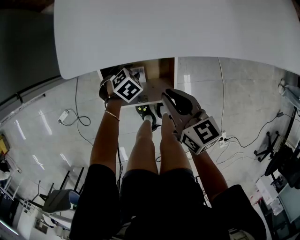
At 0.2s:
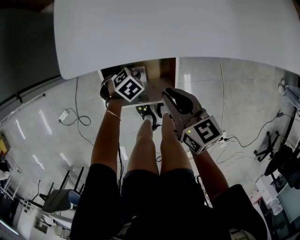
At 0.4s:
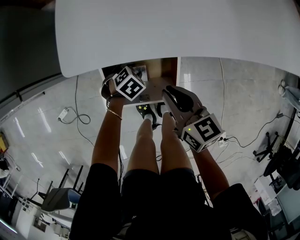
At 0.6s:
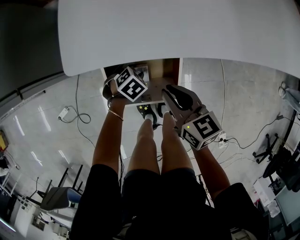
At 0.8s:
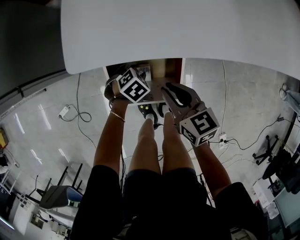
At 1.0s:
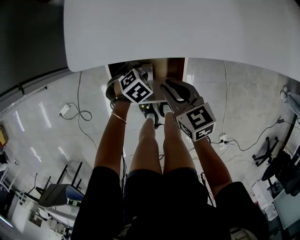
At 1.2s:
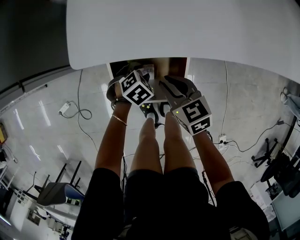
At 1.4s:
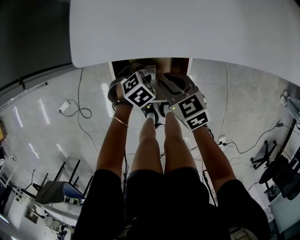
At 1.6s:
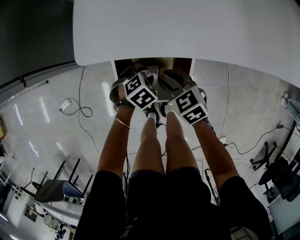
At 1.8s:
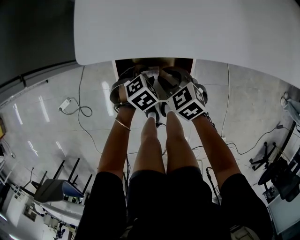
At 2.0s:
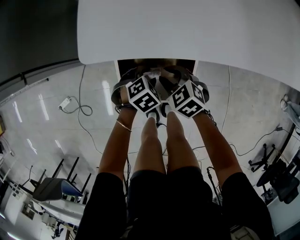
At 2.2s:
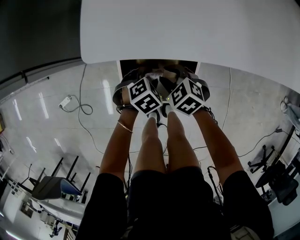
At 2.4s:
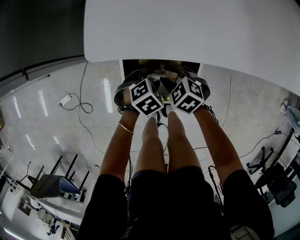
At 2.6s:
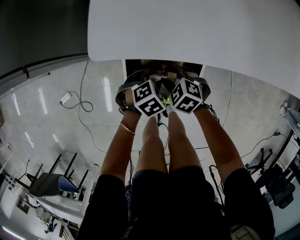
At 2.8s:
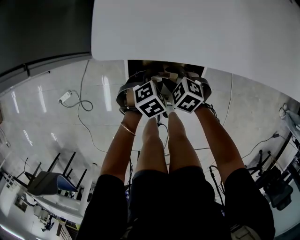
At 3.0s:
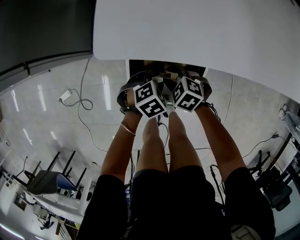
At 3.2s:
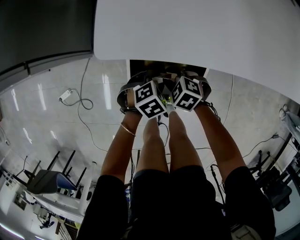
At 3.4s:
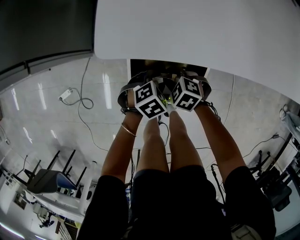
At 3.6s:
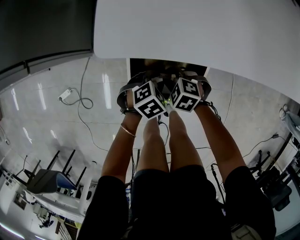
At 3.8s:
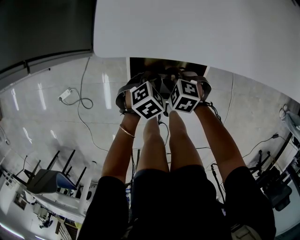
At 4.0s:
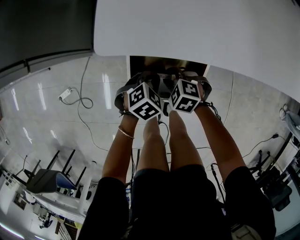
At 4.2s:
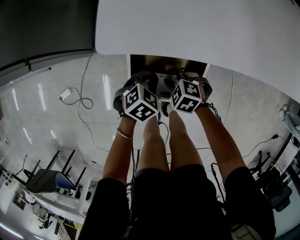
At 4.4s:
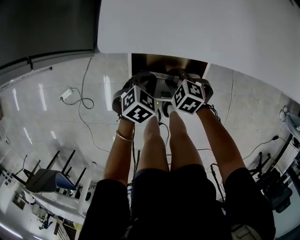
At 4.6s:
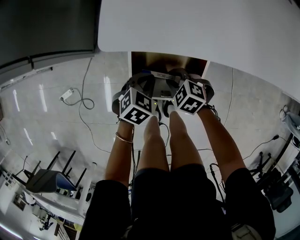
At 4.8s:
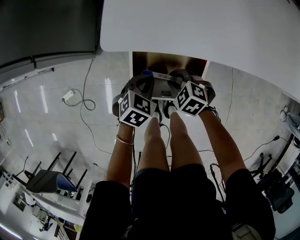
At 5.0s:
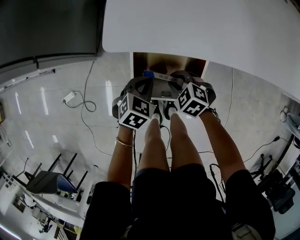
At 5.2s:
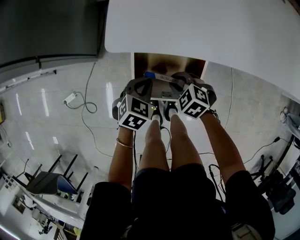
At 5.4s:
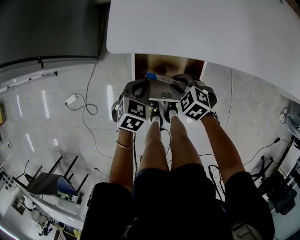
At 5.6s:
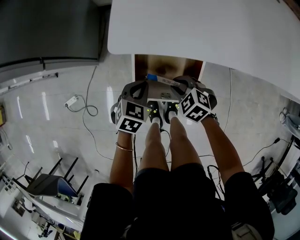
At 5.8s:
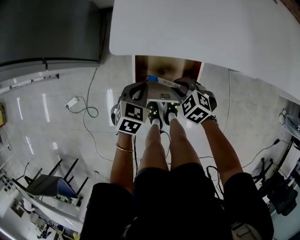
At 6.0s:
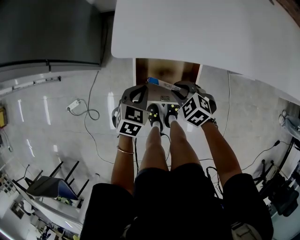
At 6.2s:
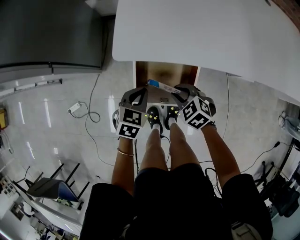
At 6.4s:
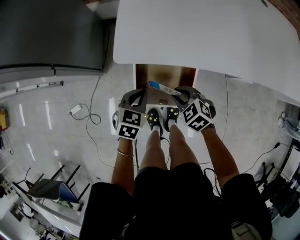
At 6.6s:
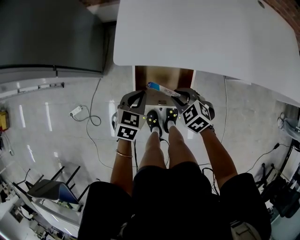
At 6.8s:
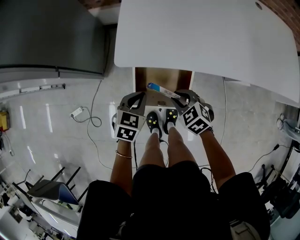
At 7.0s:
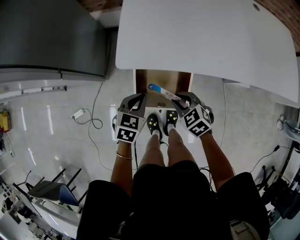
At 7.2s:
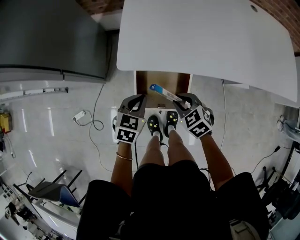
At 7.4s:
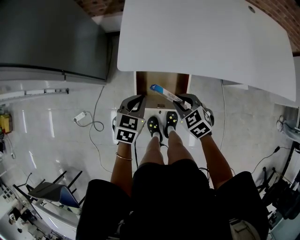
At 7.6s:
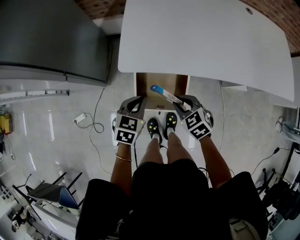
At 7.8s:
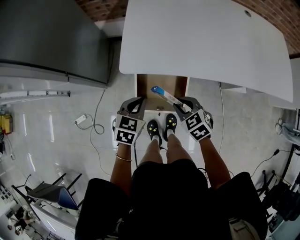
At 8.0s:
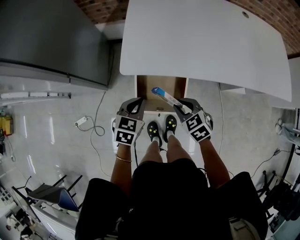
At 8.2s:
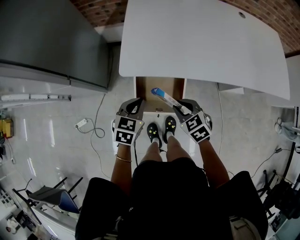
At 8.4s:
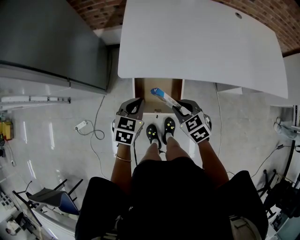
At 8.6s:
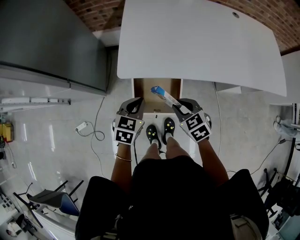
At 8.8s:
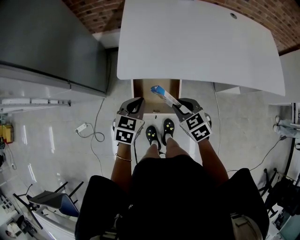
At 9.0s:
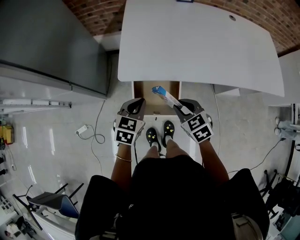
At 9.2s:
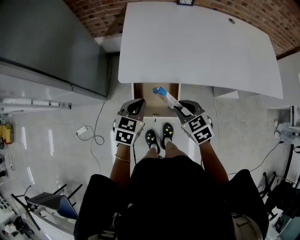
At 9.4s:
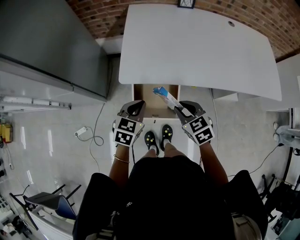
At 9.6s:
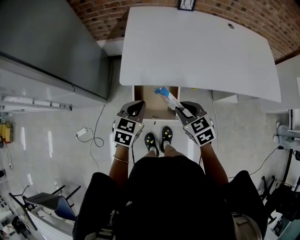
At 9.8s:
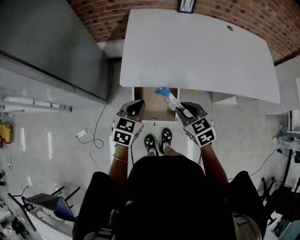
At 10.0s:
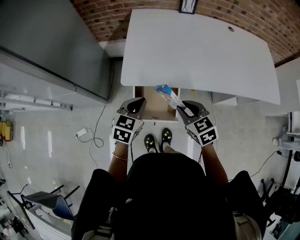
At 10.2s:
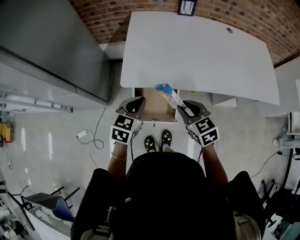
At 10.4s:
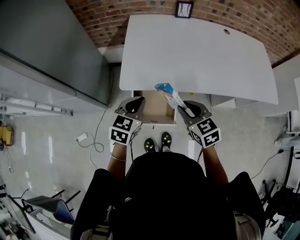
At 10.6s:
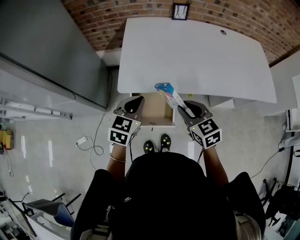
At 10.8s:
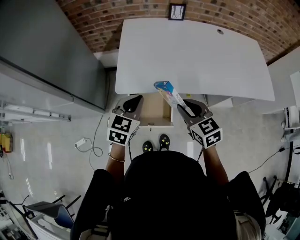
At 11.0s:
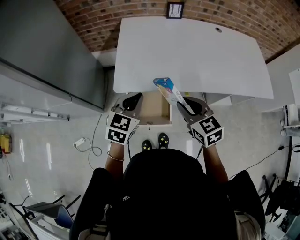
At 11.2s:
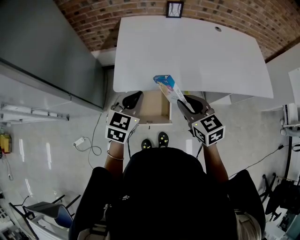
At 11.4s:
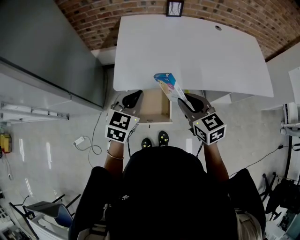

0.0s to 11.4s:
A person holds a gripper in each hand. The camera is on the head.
0.0s to 1.4s: The right gripper is displaced downward and to the left by some 10 cm, and turns by approximately 30 degrees.
1.4s to 2.8s: The right gripper heads downward, covering approximately 10 cm, and rotates about 40 degrees.
2.8s to 4.2s: The left gripper closes up.
4.2s to 5.6s: The two grippers go about 5 cm upward.
5.6s to 7.2s: The grippers both shift upward by roughly 10 cm.
7.2s to 8.6s: The grippers both shift upward by about 10 cm.
8.6s to 10.0s: Both grippers travel together upward, some 10 cm.
10.0s to 11.4s: The two grippers go roughly 10 cm upward.

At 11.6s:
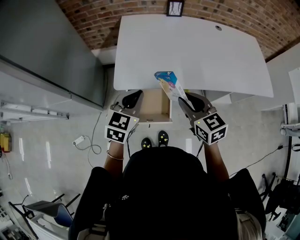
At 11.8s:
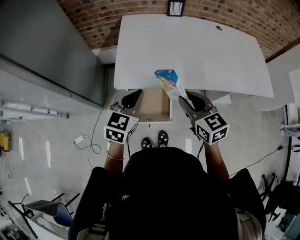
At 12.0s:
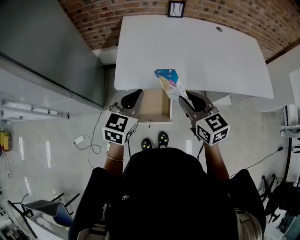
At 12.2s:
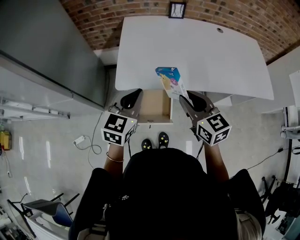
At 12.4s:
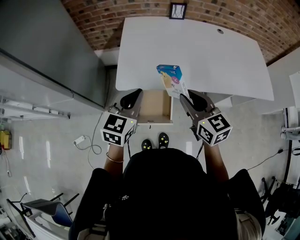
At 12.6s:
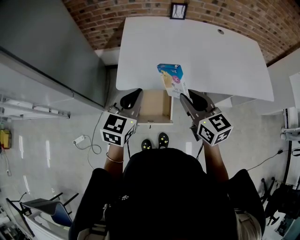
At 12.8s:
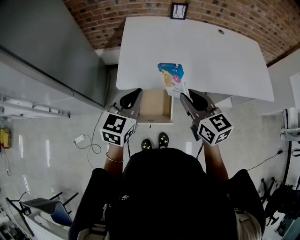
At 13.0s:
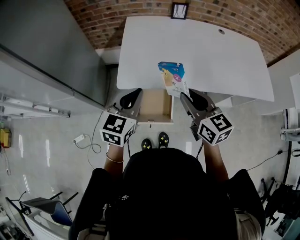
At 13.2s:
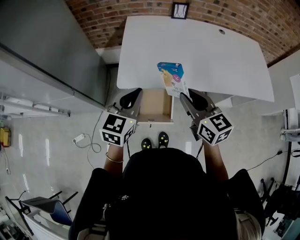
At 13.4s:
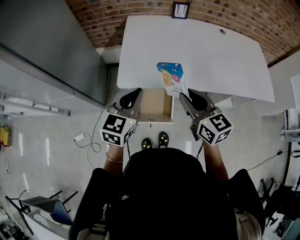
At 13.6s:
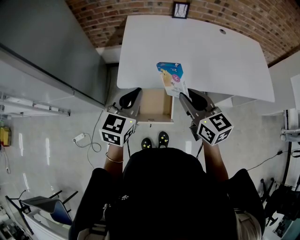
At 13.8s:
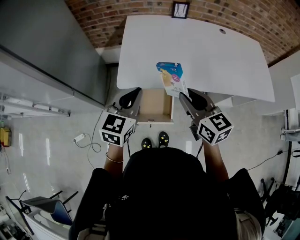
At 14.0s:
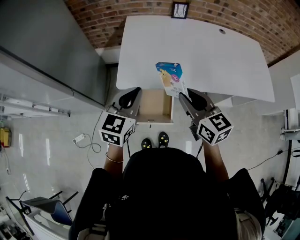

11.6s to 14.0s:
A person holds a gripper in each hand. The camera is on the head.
11.6s to 12.8s: The grippers stay close to where they were, moving slightly.
12.8s to 14.0s: Neither gripper changes place.

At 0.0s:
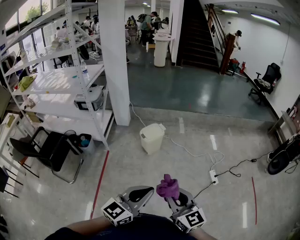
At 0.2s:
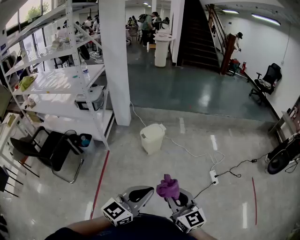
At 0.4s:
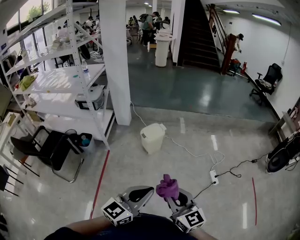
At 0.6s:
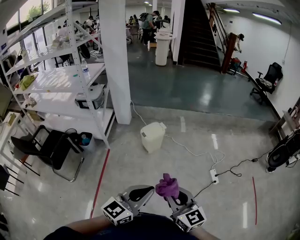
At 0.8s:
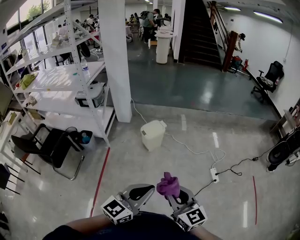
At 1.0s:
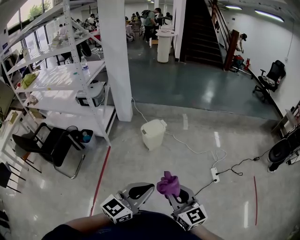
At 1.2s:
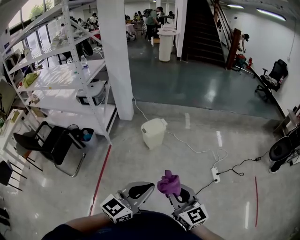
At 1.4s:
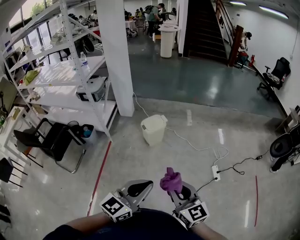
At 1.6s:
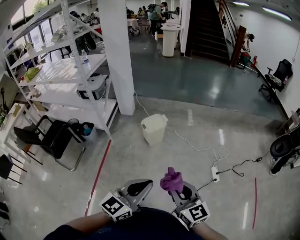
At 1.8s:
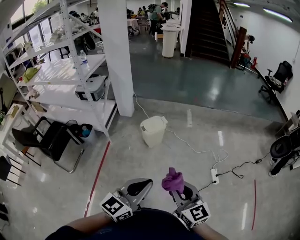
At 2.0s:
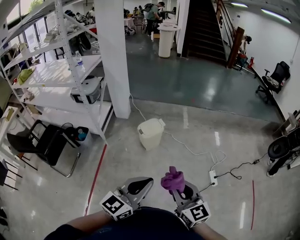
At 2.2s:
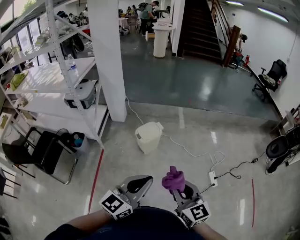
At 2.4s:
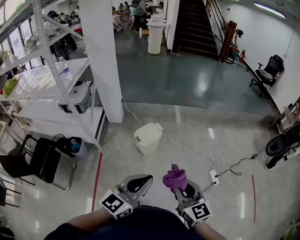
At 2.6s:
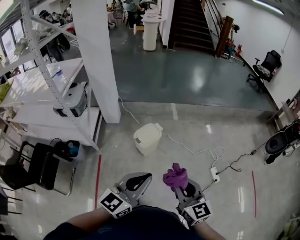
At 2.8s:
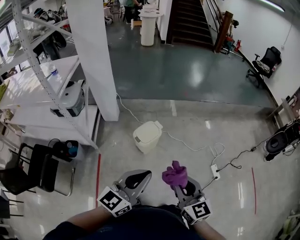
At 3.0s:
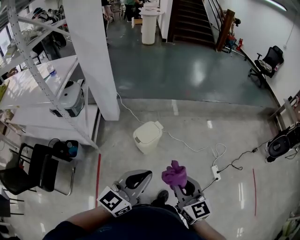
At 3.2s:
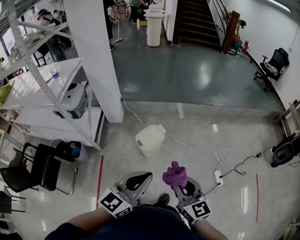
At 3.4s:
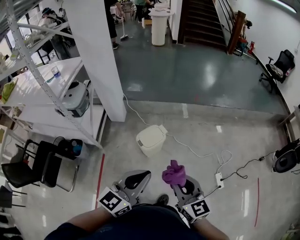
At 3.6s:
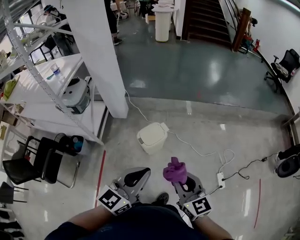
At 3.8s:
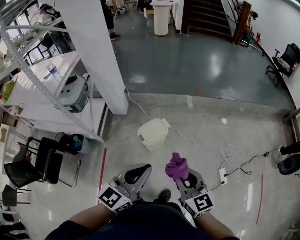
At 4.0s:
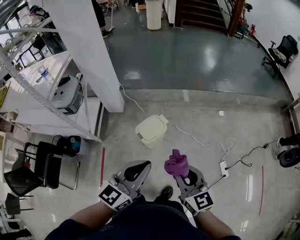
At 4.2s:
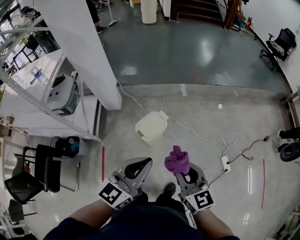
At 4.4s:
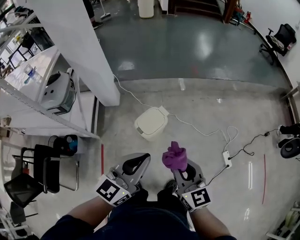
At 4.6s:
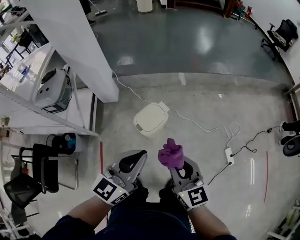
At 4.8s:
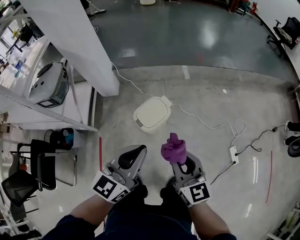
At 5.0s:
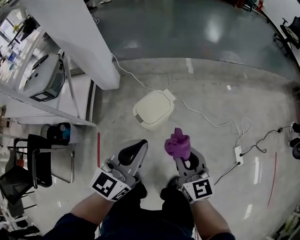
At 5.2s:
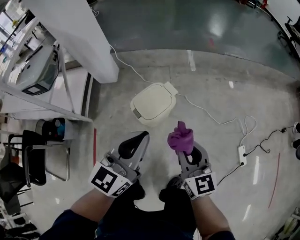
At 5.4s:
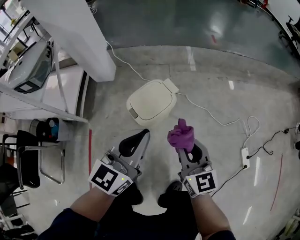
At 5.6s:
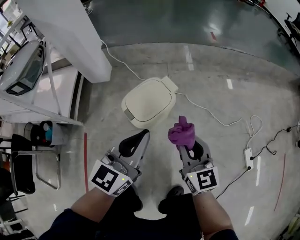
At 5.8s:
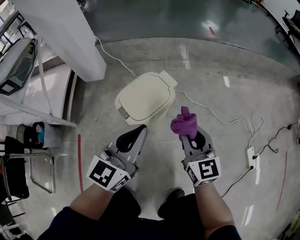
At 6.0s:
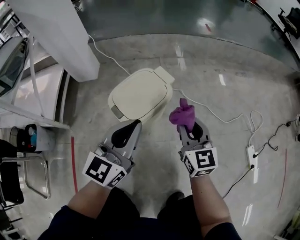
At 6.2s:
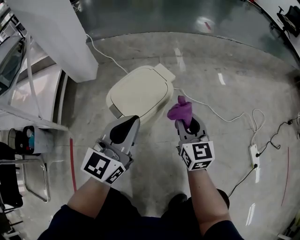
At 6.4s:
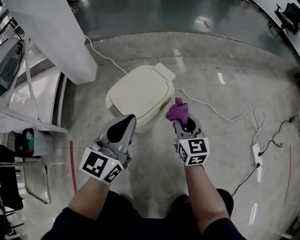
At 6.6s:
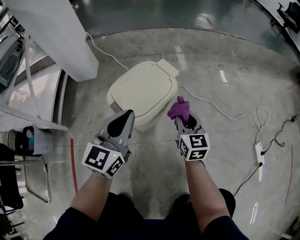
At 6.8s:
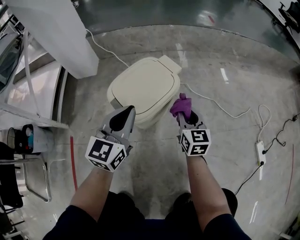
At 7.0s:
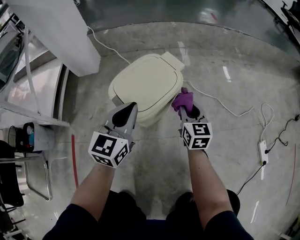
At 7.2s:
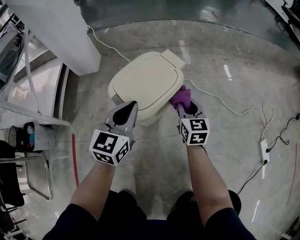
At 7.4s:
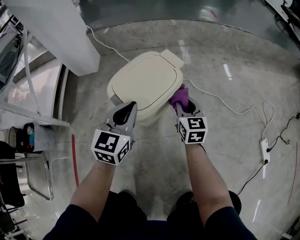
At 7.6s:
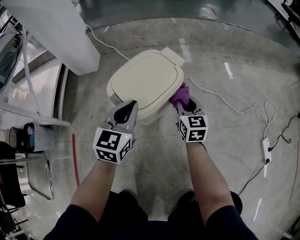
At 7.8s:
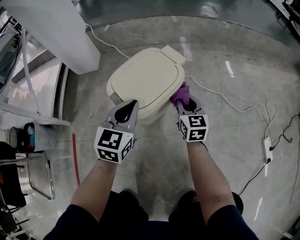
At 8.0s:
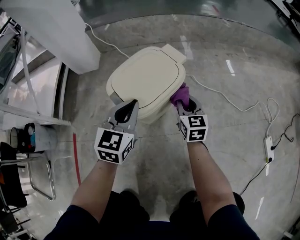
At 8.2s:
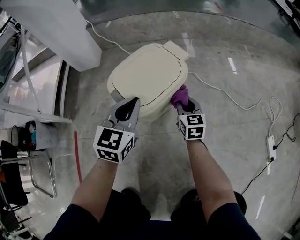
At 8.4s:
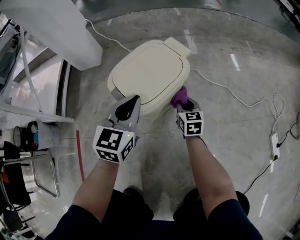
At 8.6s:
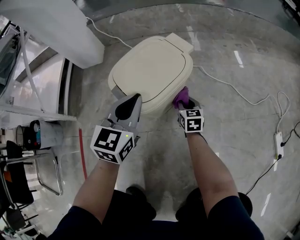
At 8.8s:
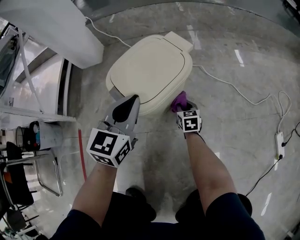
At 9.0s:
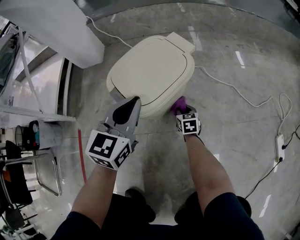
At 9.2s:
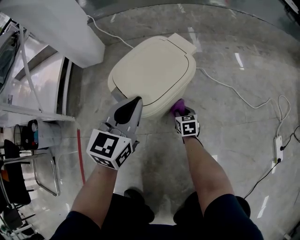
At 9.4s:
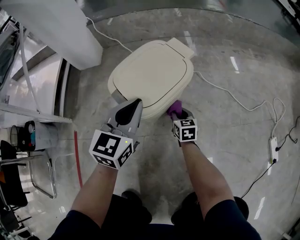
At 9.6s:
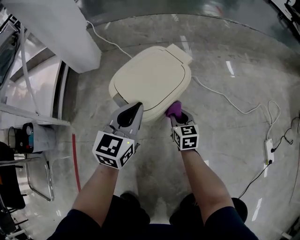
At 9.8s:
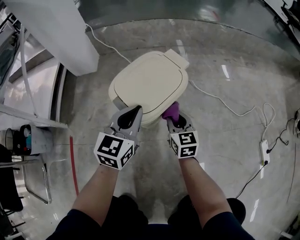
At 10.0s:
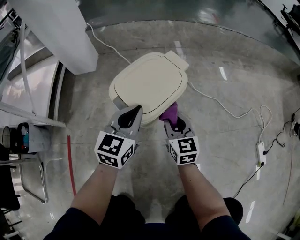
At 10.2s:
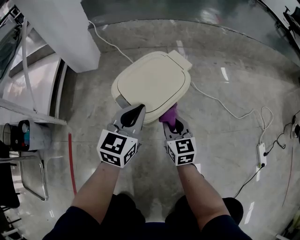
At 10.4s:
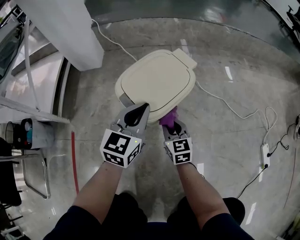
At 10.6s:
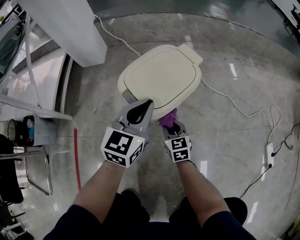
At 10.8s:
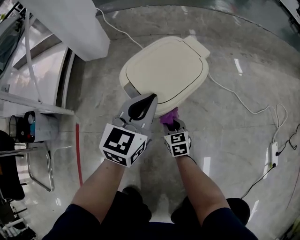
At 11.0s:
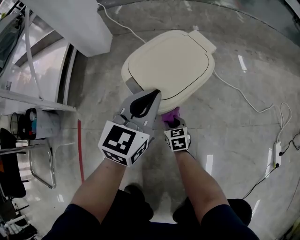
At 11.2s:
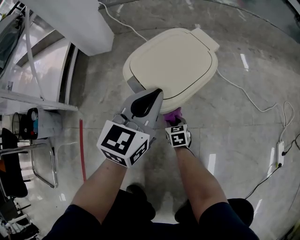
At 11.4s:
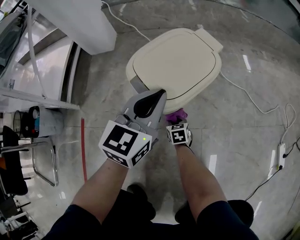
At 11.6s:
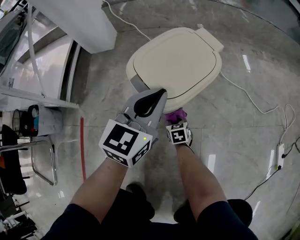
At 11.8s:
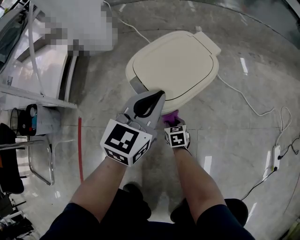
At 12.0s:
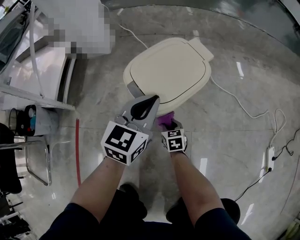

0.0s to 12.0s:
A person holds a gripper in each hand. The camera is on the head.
0.0s to 1.6s: Both grippers travel together to the right, approximately 10 cm.
1.6s to 3.0s: Both grippers travel together forward and to the left, roughly 35 cm.
3.0s to 4.4s: Both grippers move forward and downward, roughly 20 cm.
4.4s to 6.0s: The right gripper is displaced downward and forward by roughly 60 cm. Meanwhile the left gripper is displaced downward by roughly 50 cm.
6.0s to 7.6s: The right gripper moves downward and forward, about 20 cm, while the left gripper goes about 15 cm downward.
7.6s to 9.0s: The right gripper moves downward, some 25 cm, and turns by some 30 degrees.
9.0s to 10.4s: The right gripper travels upward by about 20 cm, and swivels some 20 degrees.
10.4s to 12.0s: The right gripper travels downward by approximately 15 cm, and changes its angle by about 20 degrees.
